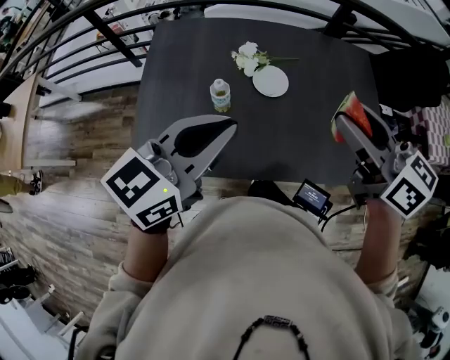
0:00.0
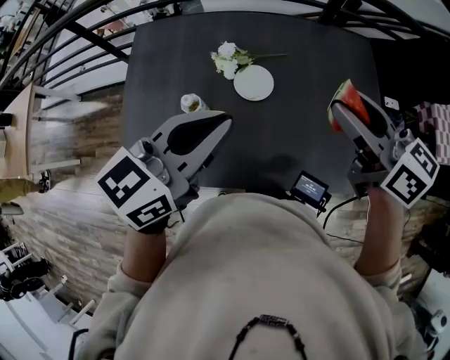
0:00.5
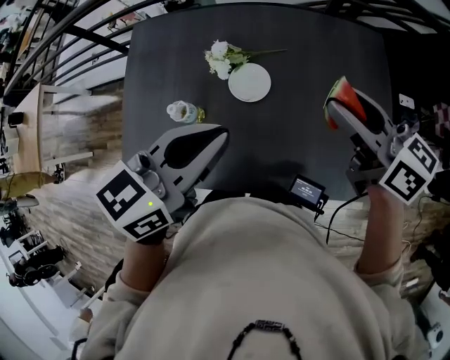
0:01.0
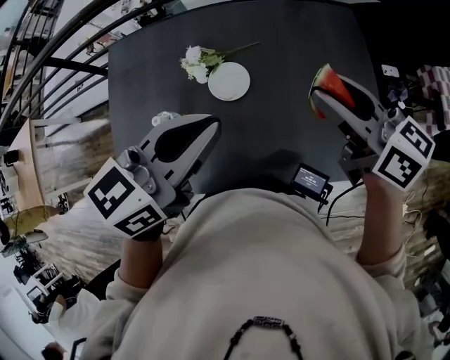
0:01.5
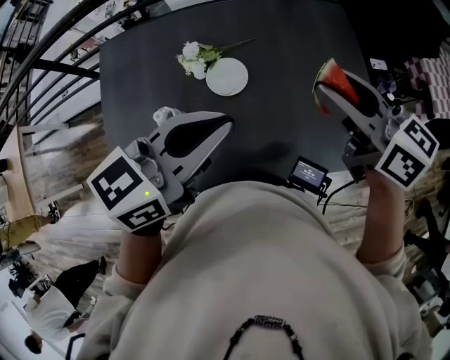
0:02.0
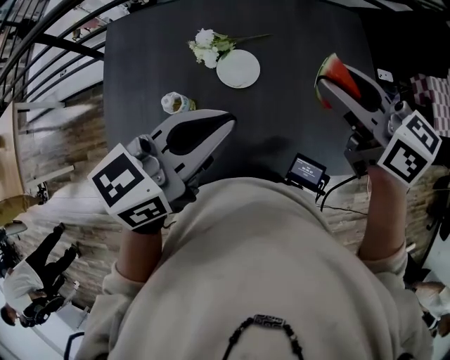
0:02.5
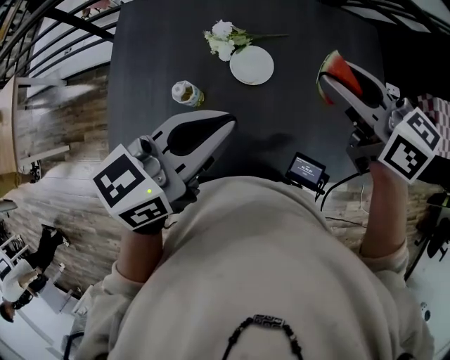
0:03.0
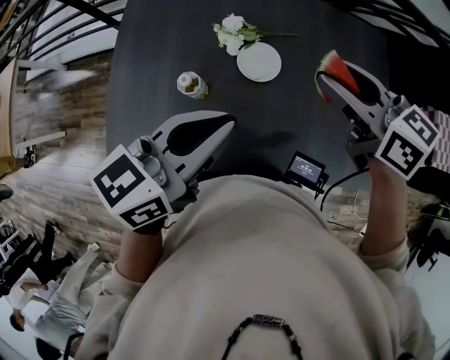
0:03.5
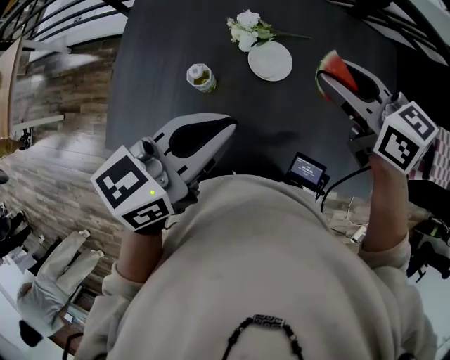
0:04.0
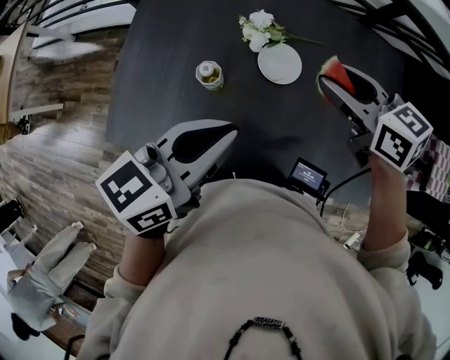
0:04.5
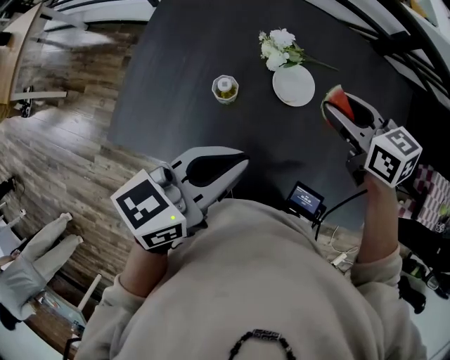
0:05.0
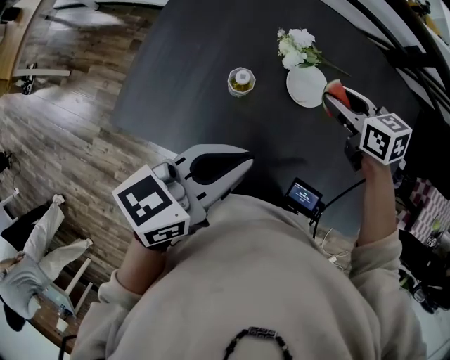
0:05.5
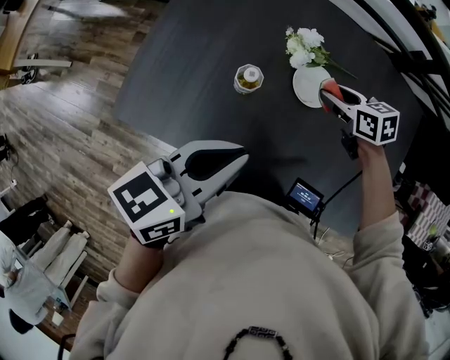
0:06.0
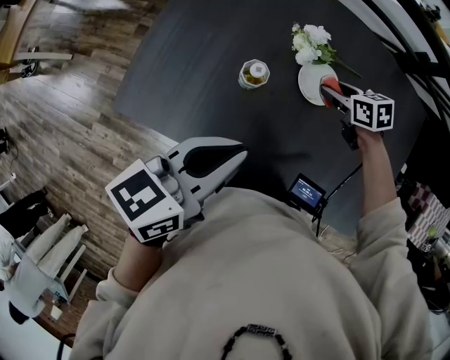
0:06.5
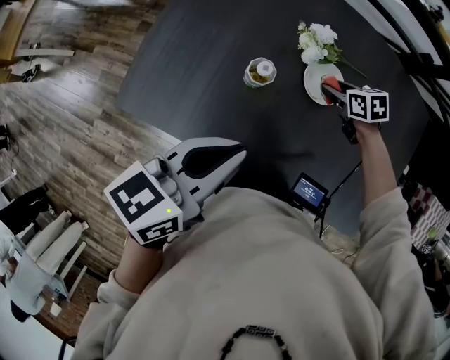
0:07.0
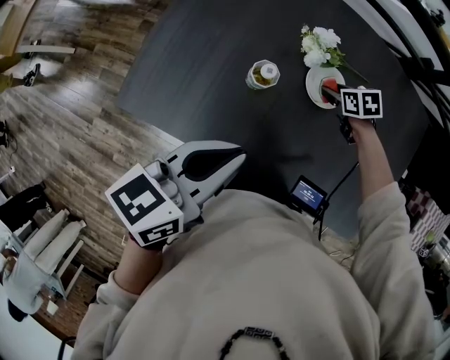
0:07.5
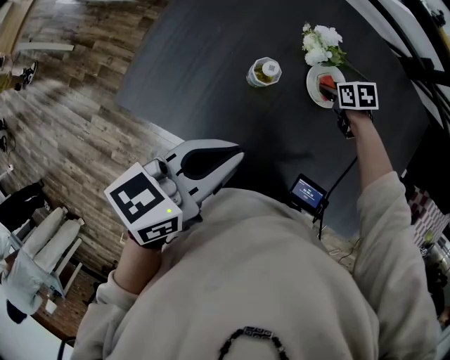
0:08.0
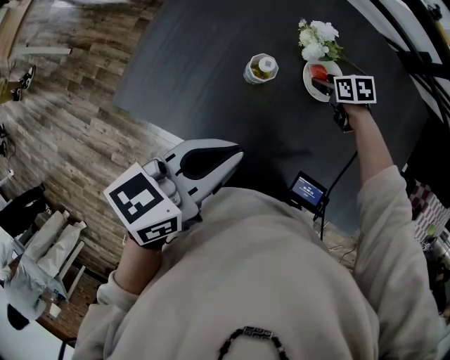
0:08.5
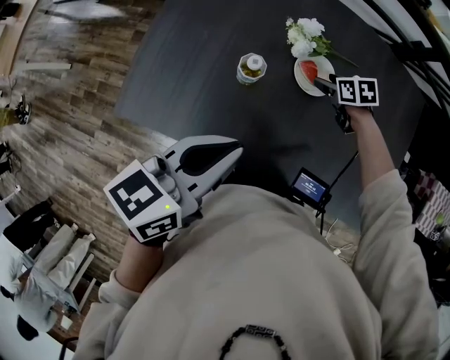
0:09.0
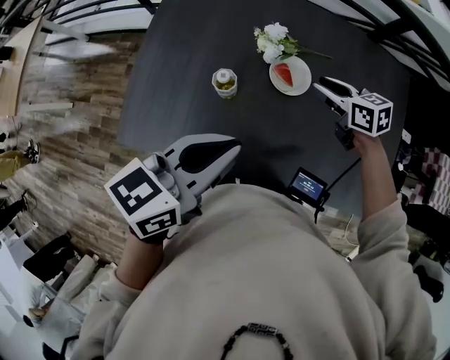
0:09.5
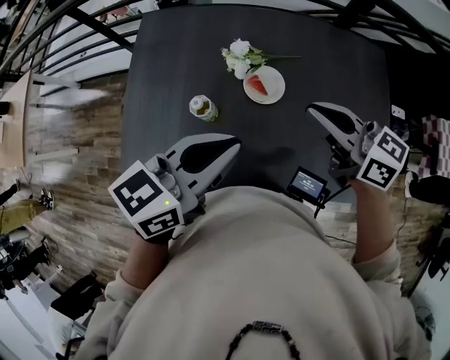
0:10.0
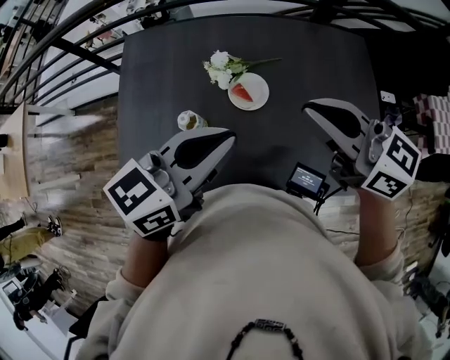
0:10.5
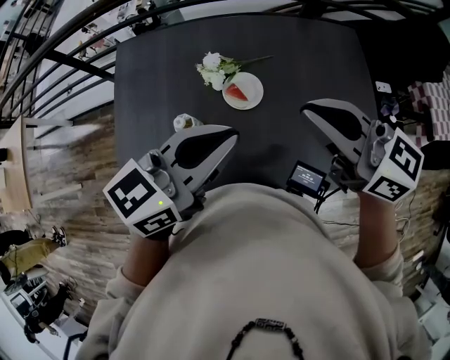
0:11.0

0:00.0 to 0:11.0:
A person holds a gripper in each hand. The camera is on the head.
0:00.0 to 0:02.0: The left gripper goes forward and returns, roughly 5 cm each way, and swivels roughly 20 degrees.
0:02.0 to 0:03.5: The two grippers go roughly 10 cm to the left.
0:03.5 to 0:05.5: The left gripper moves to the left, roughly 5 cm, while the right gripper moves downward, approximately 15 cm, and rotates some 20 degrees.
0:05.5 to 0:07.5: The right gripper goes about 15 cm downward, and rotates roughly 20 degrees. Meanwhile the left gripper shifts by some 5 cm.
0:07.5 to 0:09.0: The grippers move only a little.
0:09.0 to 0:11.0: The right gripper moves upward, some 40 cm, angles its fingers upward, by some 60 degrees, and closes its fingers, while the left gripper heads to the right, upward and forward, covering some 15 cm, and changes its angle by some 30 degrees.

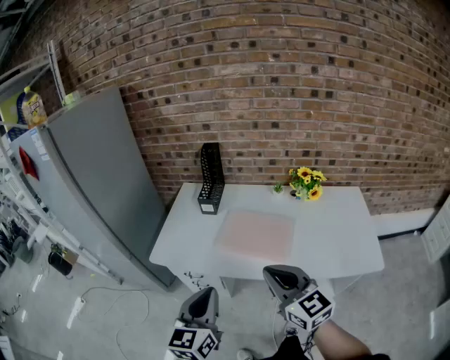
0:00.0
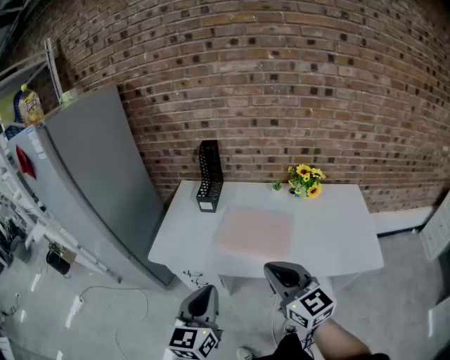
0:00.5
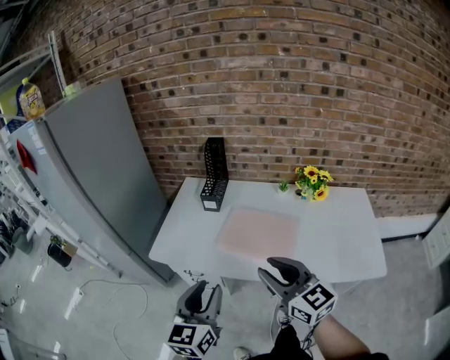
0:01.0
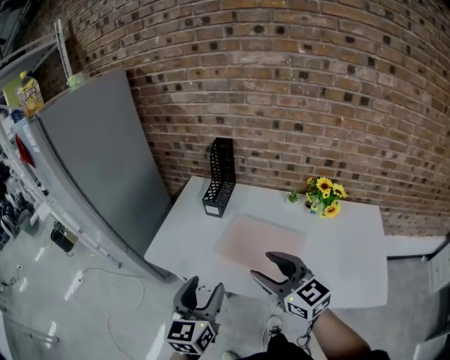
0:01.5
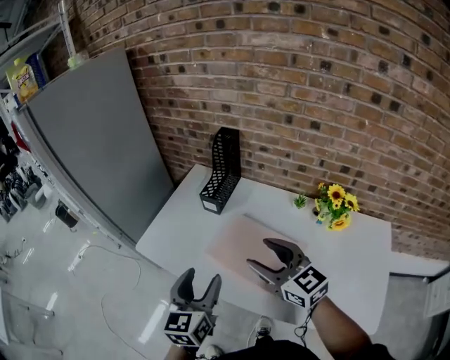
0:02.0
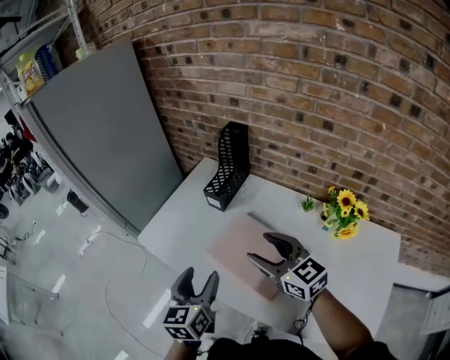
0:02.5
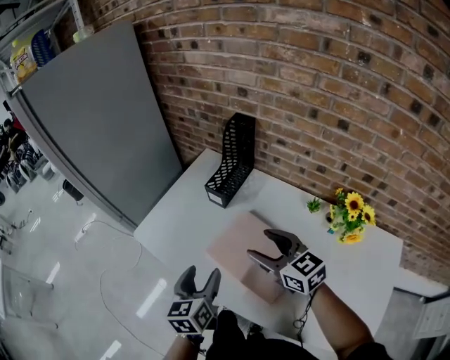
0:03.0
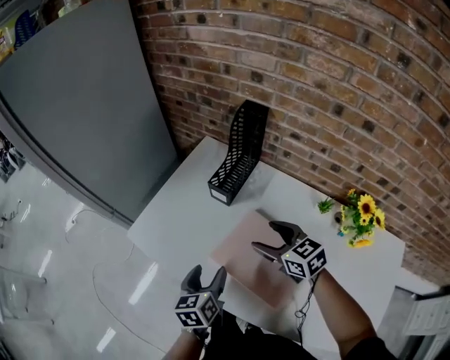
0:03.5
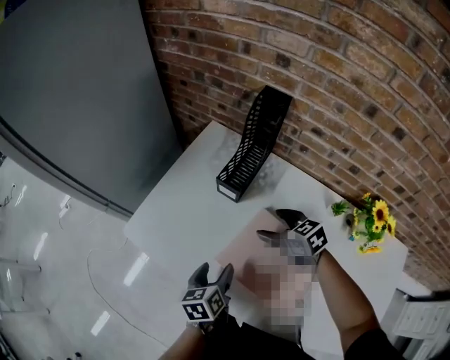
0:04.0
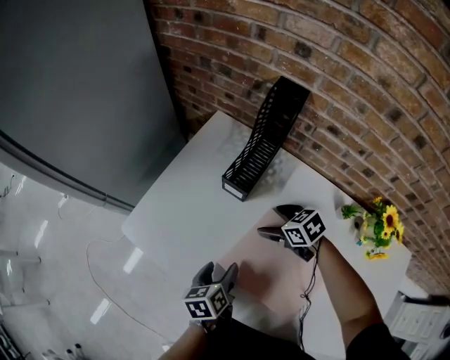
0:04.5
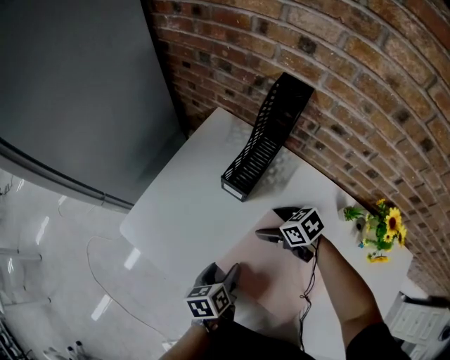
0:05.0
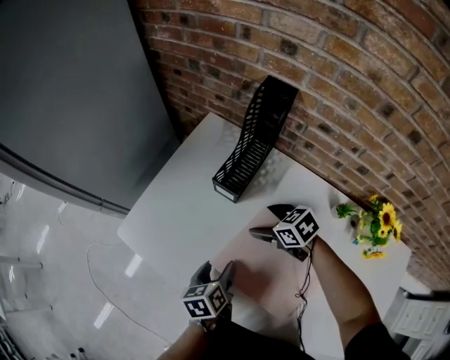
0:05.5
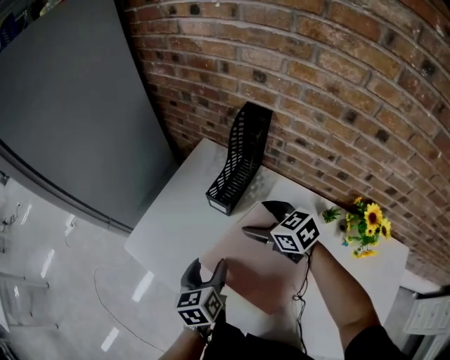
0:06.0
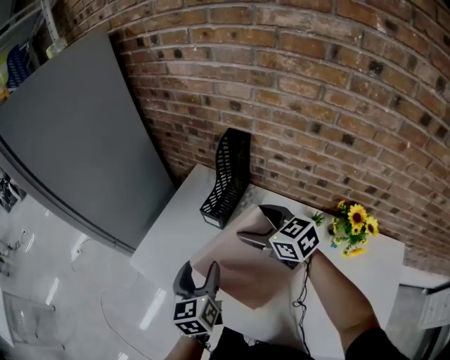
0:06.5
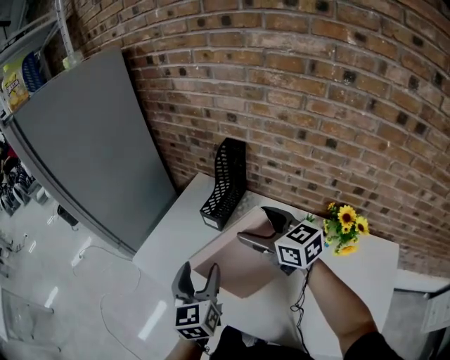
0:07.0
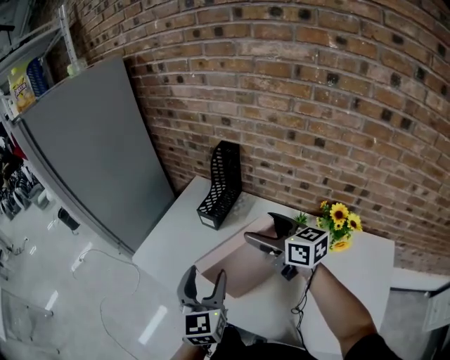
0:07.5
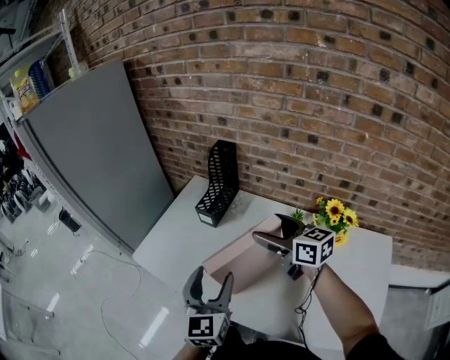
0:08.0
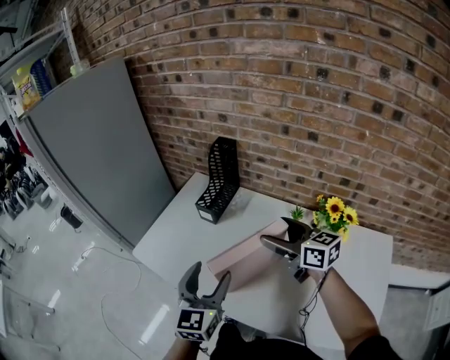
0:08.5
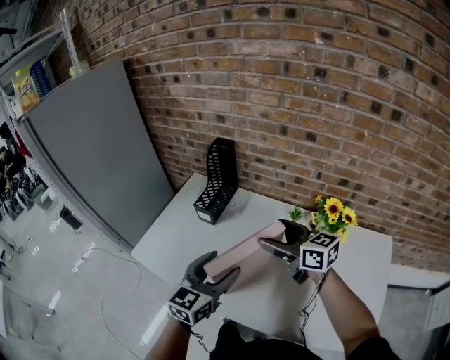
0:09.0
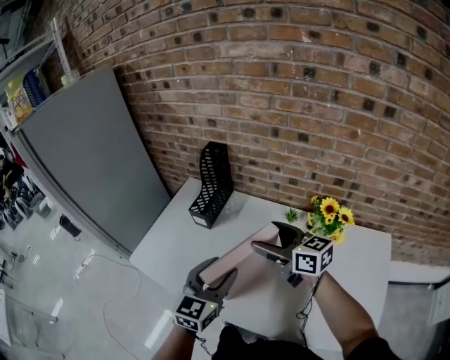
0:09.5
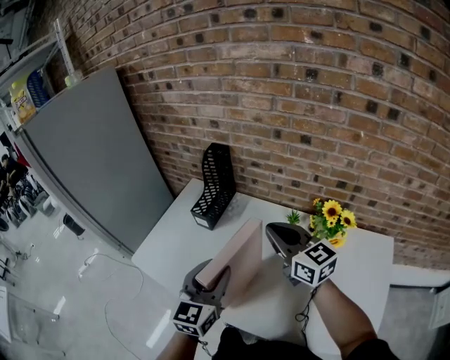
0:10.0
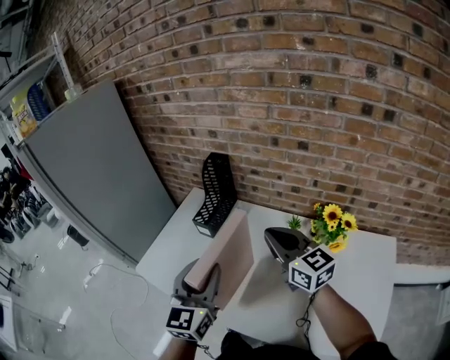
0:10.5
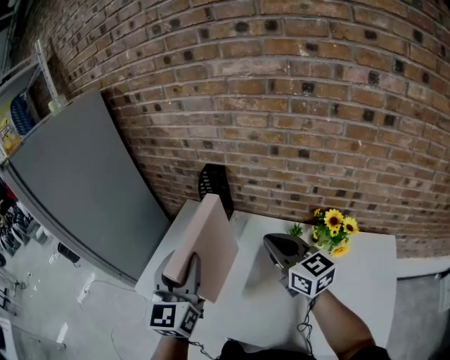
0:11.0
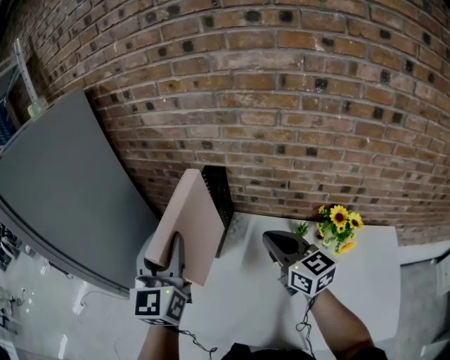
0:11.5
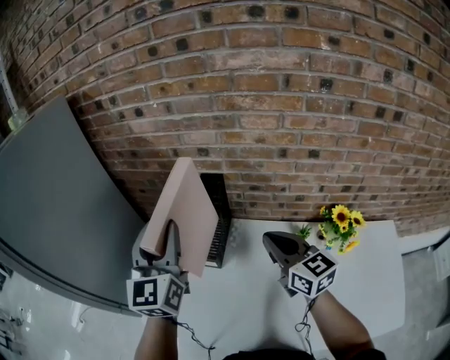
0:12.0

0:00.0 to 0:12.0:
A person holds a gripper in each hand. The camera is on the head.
0:00.0 to 0:02.0: The right gripper goes roughly 20 cm forward, turns by about 20 degrees, and opens. The left gripper shifts roughly 20 cm forward and to the right, and opens.
0:02.0 to 0:04.0: The grippers both shift downward and forward by roughly 30 cm. The left gripper changes its angle by approximately 40 degrees; the right gripper angles its fingers downward, by roughly 30 degrees.
0:04.0 to 0:06.0: The two grippers go roughly 5 cm upward.
0:06.0 to 0:08.0: The grippers both shift upward and backward by roughly 25 cm. The left gripper rotates about 40 degrees; the right gripper turns by roughly 30 degrees.
0:08.0 to 0:10.0: The right gripper moves approximately 5 cm, and closes. The left gripper changes place by about 5 cm, and closes.
0:10.0 to 0:12.0: The right gripper moves forward and to the left, approximately 15 cm; the left gripper is displaced forward, upward and to the left by some 35 cm.

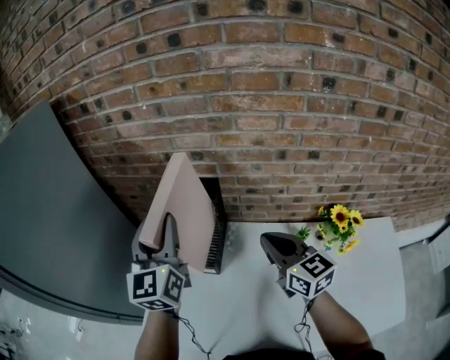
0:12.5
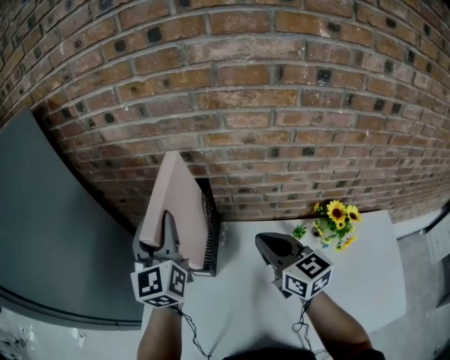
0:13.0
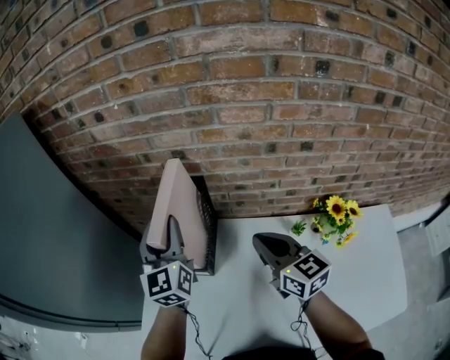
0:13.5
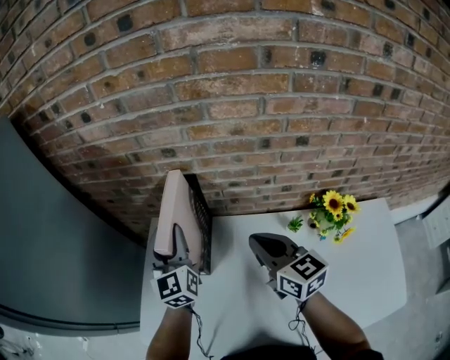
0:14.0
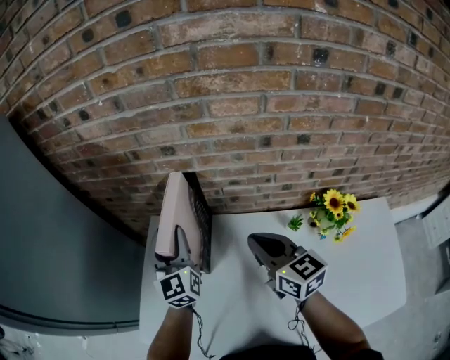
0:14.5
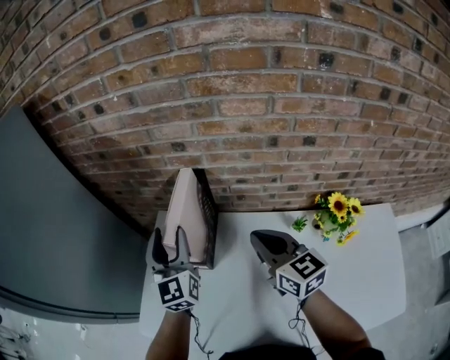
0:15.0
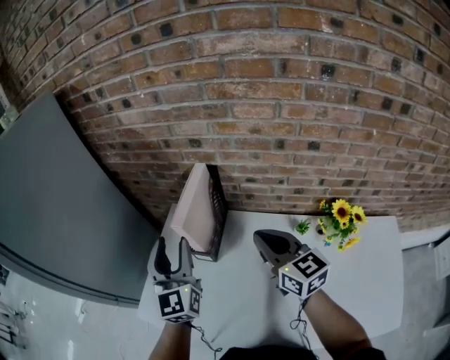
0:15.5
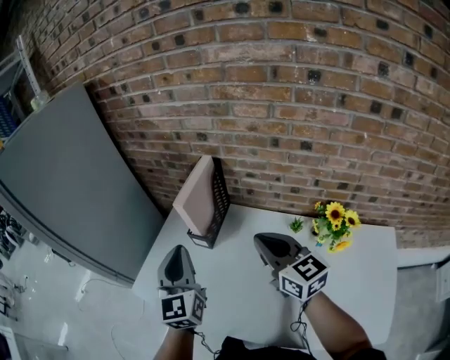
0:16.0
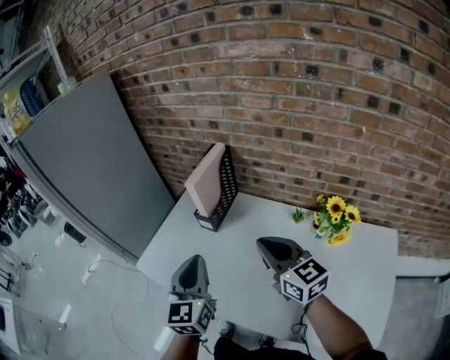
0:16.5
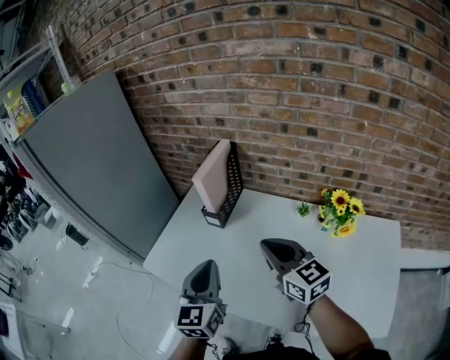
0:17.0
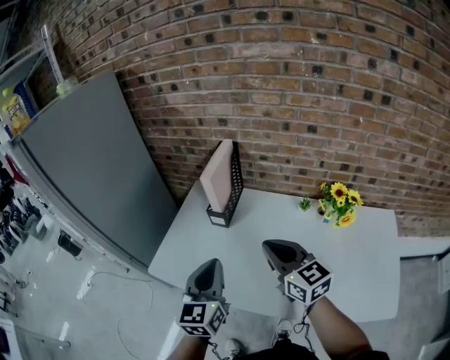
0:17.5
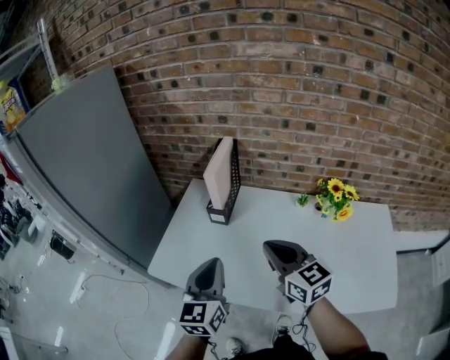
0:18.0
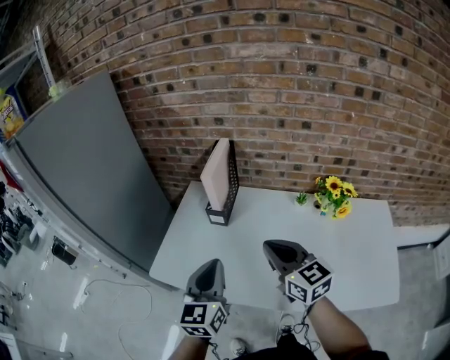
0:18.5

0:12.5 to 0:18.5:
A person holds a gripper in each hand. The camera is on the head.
0:12.5 to 0:14.5: The left gripper heads downward, covering about 15 cm. The right gripper changes place by some 5 cm.
0:14.5 to 0:16.5: The right gripper travels backward by some 20 cm, and changes its angle by approximately 20 degrees, while the left gripper is displaced backward by roughly 35 cm, and closes up.
0:16.5 to 0:18.5: The grippers both shift to the left by roughly 10 cm.
